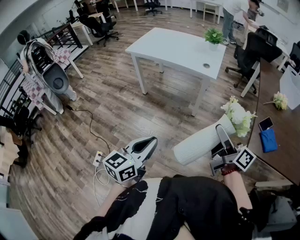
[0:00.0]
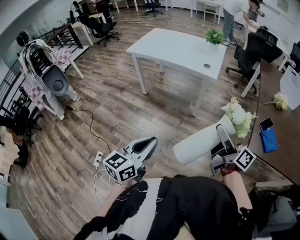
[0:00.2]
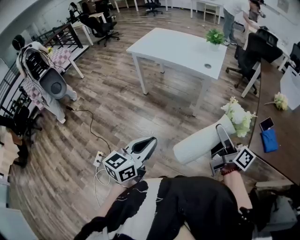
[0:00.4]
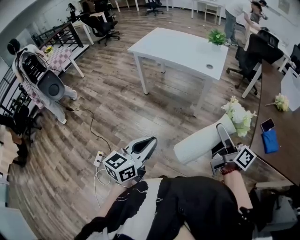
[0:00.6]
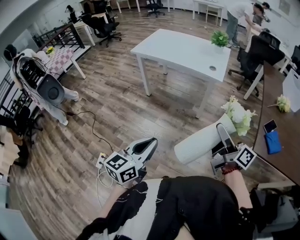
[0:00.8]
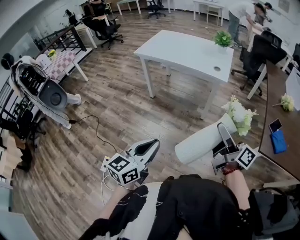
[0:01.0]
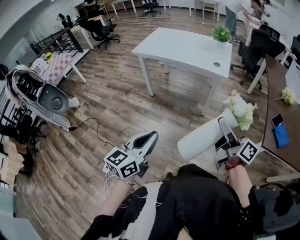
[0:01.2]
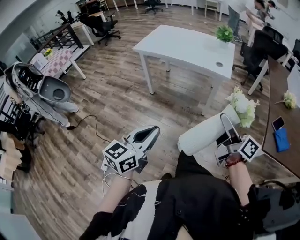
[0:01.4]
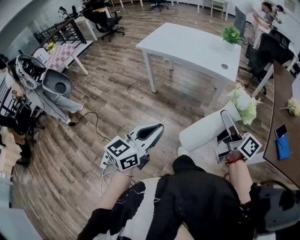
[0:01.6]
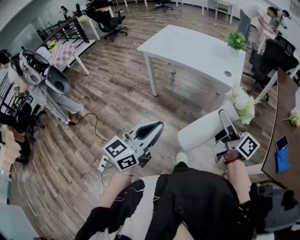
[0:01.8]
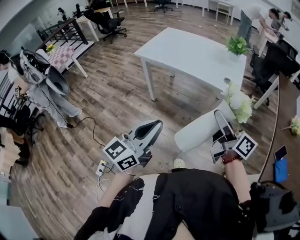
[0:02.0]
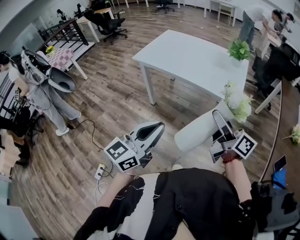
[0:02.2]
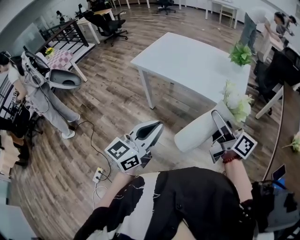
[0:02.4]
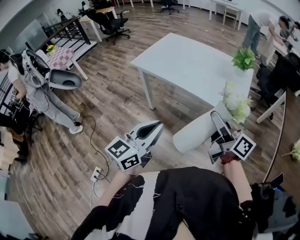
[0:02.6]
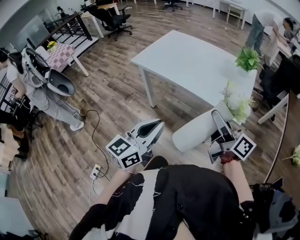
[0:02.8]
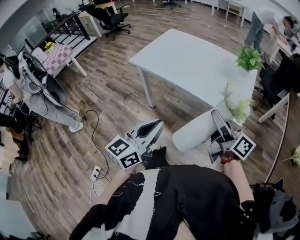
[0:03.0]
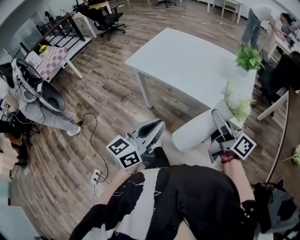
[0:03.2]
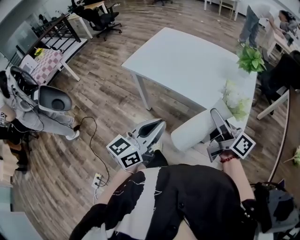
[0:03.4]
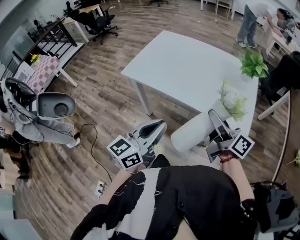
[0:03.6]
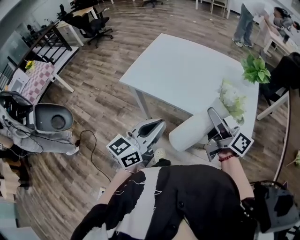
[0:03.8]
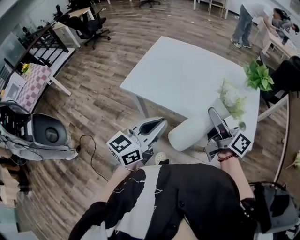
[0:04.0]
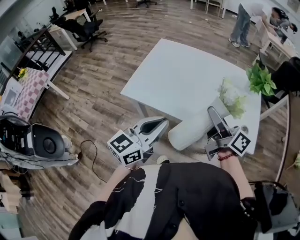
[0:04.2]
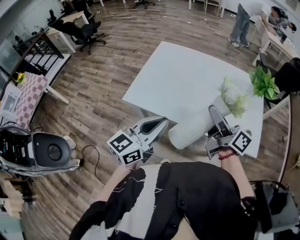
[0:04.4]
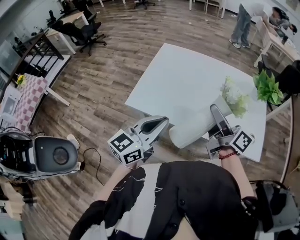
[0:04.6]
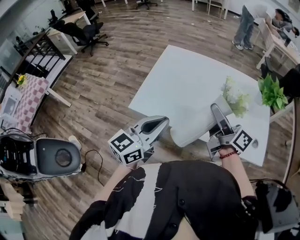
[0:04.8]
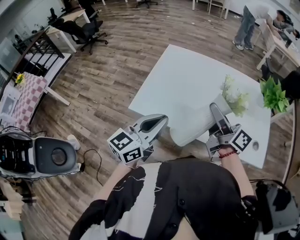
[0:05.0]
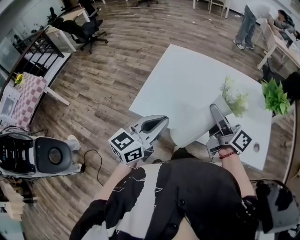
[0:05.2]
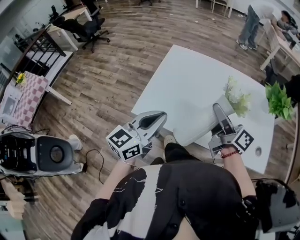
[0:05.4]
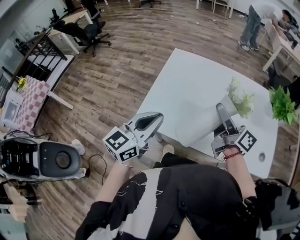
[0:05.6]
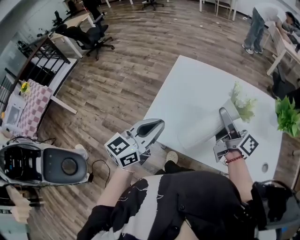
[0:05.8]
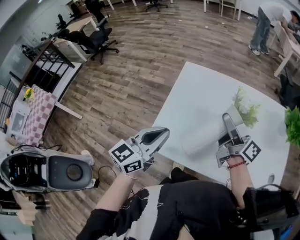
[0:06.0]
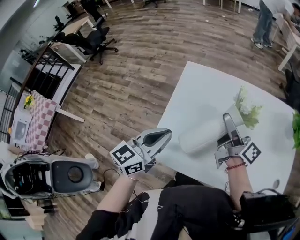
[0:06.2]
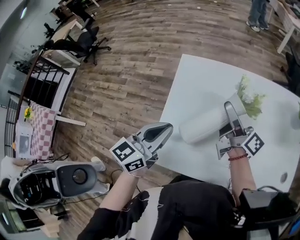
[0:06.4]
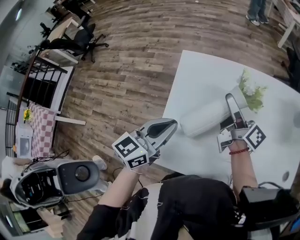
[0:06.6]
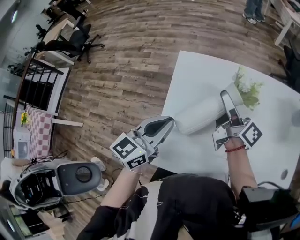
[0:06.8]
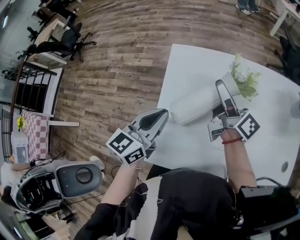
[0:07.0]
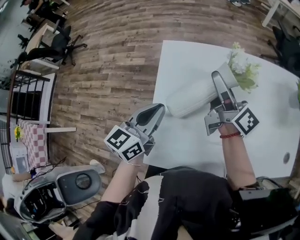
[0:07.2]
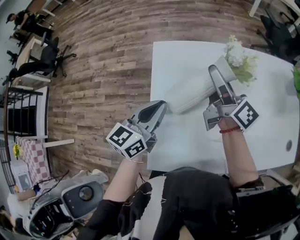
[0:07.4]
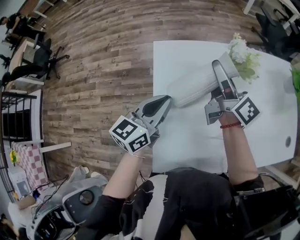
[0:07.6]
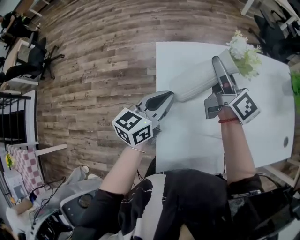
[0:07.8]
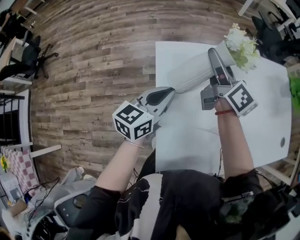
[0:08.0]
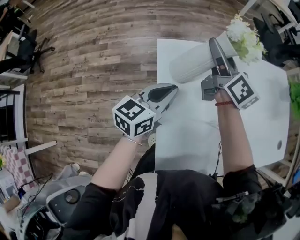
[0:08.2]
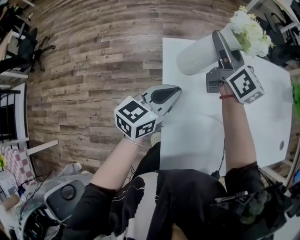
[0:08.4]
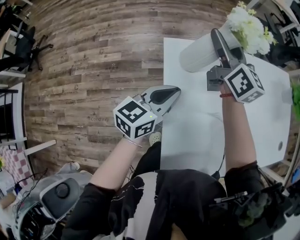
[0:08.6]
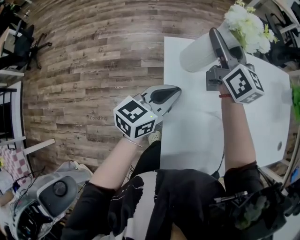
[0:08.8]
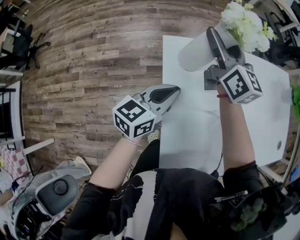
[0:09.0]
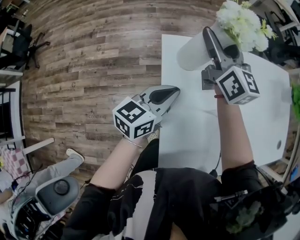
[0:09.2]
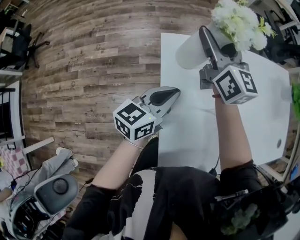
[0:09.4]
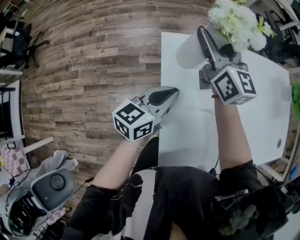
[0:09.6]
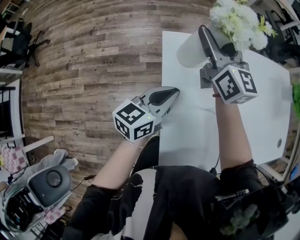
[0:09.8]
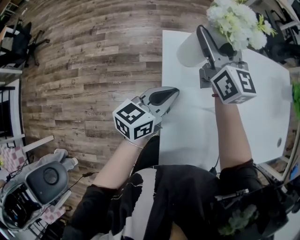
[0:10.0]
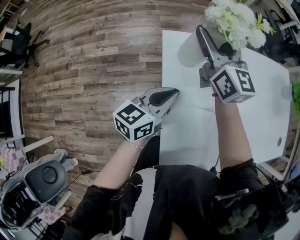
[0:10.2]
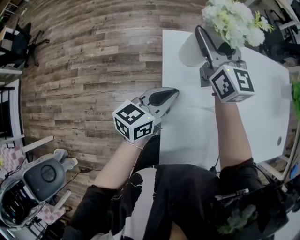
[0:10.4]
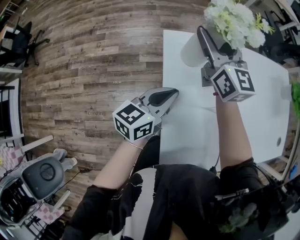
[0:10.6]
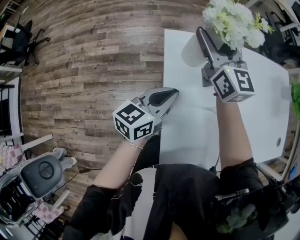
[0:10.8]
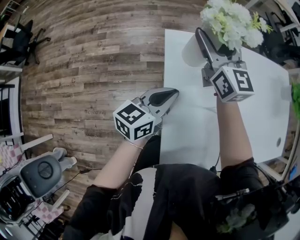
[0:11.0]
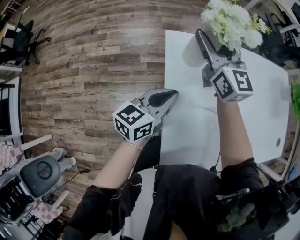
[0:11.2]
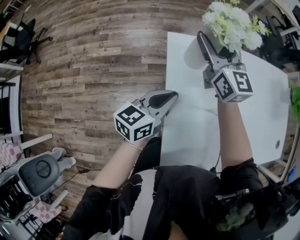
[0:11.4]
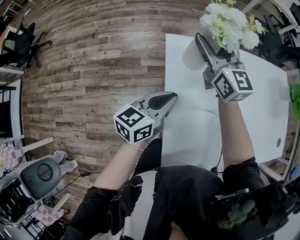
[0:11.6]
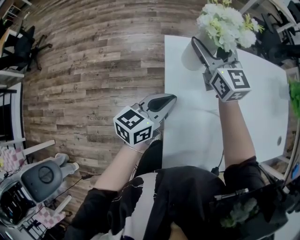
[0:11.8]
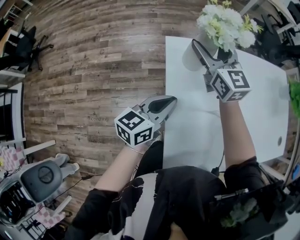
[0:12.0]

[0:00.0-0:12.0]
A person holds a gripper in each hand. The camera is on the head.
0:00.0 to 0:01.6: The two grippers go some 15 cm to the left and forward.
0:01.6 to 0:03.0: Both grippers move forward, approximately 35 cm.
0:03.0 to 0:04.4: The two grippers go about 35 cm forward and to the left.
0:04.4 to 0:06.0: Both grippers travel together forward and to the left, about 25 cm.
0:06.0 to 0:07.6: The left gripper travels forward and downward by roughly 25 cm; the right gripper travels forward by about 20 cm, and changes its angle by some 30 degrees.
0:07.6 to 0:09.0: The left gripper heads forward and to the left, covering about 10 cm, while the right gripper moves to the left and forward, some 15 cm, and changes its angle by approximately 40 degrees.
0:09.0 to 0:10.4: The grippers make only small movements.
0:10.4 to 0:12.0: The grippers make only small movements.

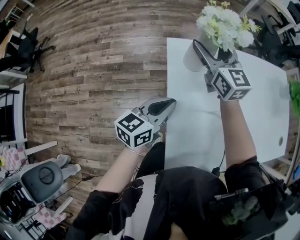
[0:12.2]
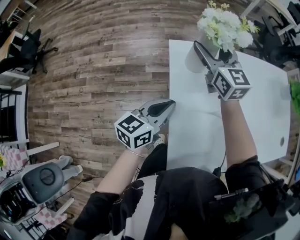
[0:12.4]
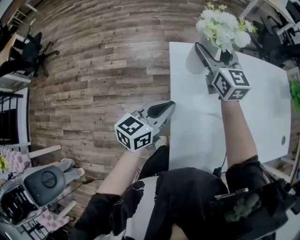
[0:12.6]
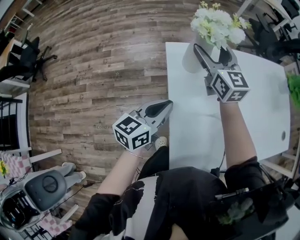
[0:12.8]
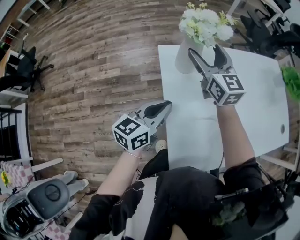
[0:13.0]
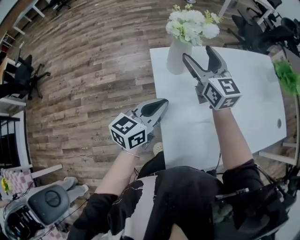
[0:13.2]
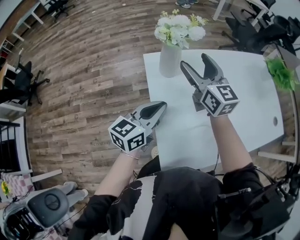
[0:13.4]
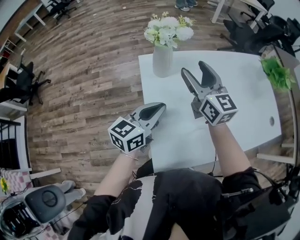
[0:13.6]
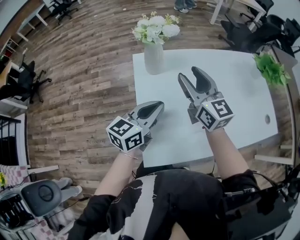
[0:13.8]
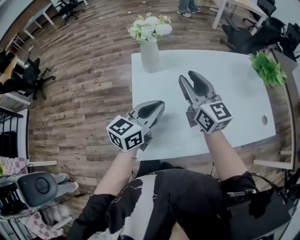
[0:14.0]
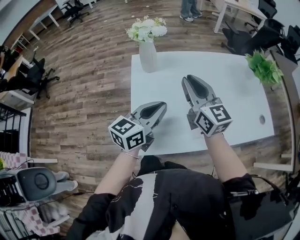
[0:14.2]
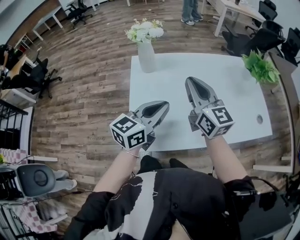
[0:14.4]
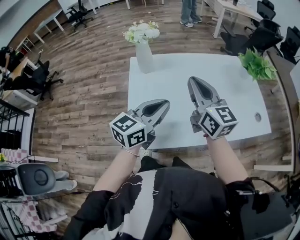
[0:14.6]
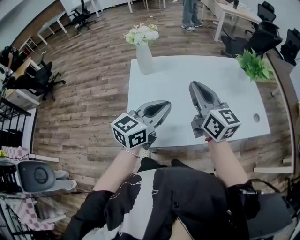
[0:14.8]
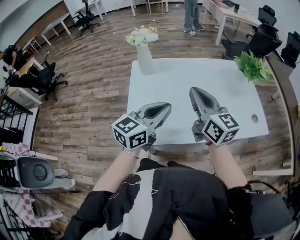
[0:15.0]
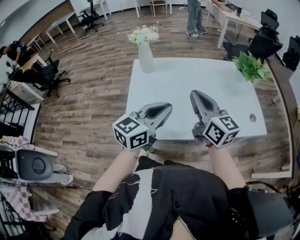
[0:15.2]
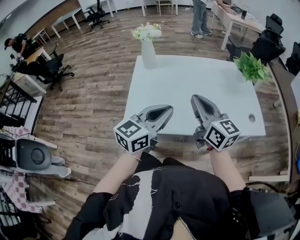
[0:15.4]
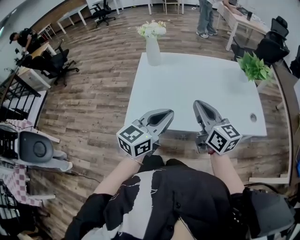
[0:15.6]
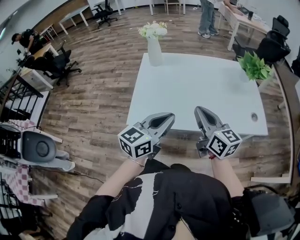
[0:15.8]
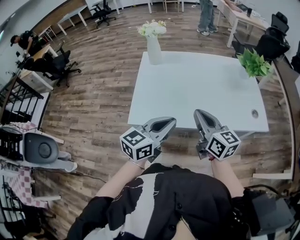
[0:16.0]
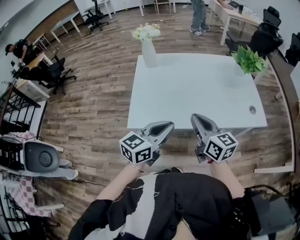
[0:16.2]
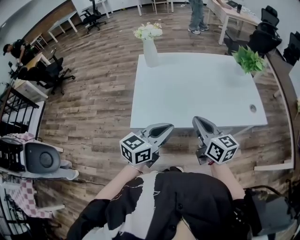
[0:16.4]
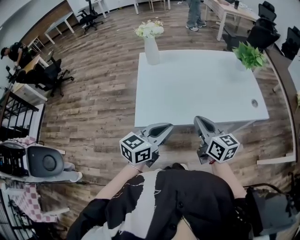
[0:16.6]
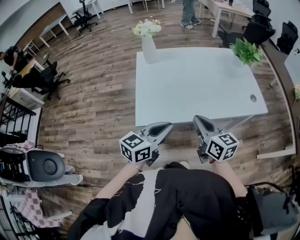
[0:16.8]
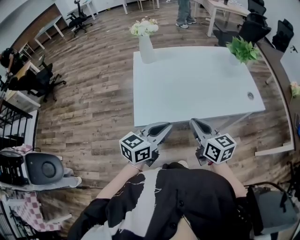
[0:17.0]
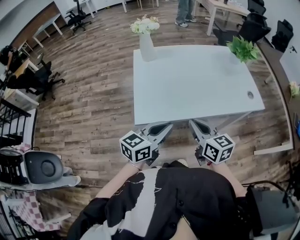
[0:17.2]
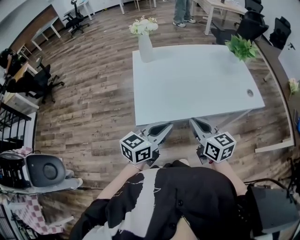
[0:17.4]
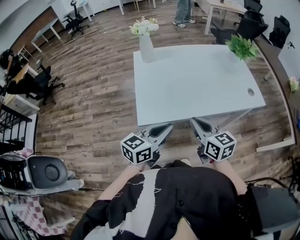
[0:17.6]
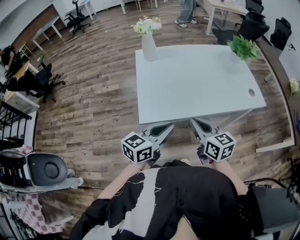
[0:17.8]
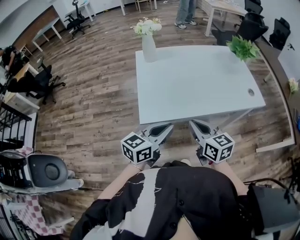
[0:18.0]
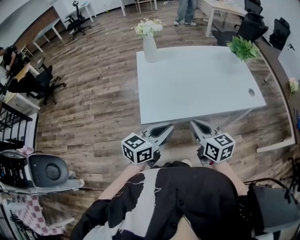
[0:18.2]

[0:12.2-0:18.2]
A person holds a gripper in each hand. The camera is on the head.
0:12.2 to 0:13.8: The left gripper moves to the right and upward, approximately 15 cm. Meanwhile the right gripper is displaced backward and to the right by approximately 20 cm.
0:13.8 to 0:15.2: The left gripper moves to the right, backward and upward, some 25 cm. The right gripper is displaced backward and to the right by some 25 cm, and closes its fingers.
0:15.2 to 0:16.6: The right gripper goes about 15 cm backward and downward; the left gripper shifts about 10 cm backward.
0:16.6 to 0:18.2: The left gripper shifts by roughly 5 cm. The right gripper moves backward and to the left, approximately 10 cm.

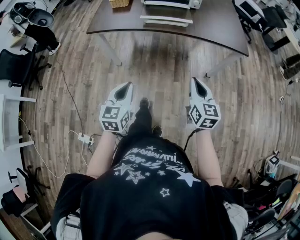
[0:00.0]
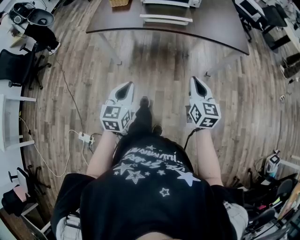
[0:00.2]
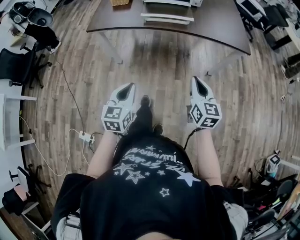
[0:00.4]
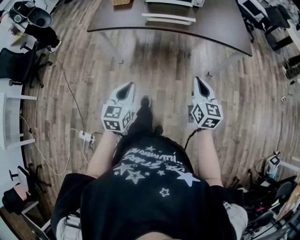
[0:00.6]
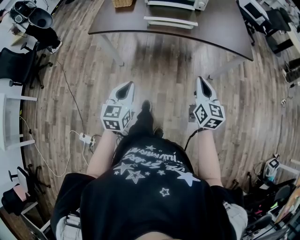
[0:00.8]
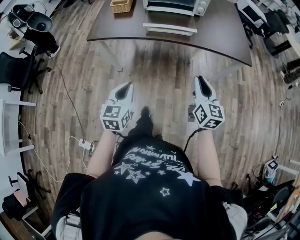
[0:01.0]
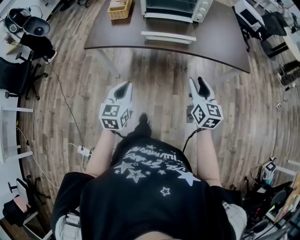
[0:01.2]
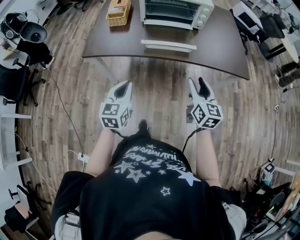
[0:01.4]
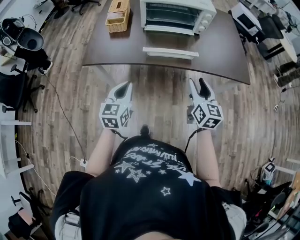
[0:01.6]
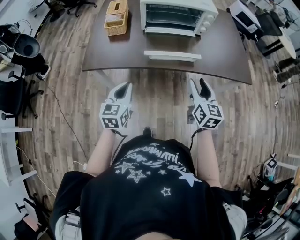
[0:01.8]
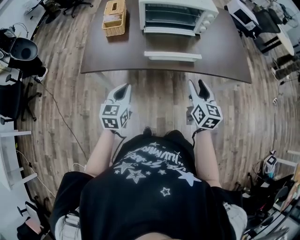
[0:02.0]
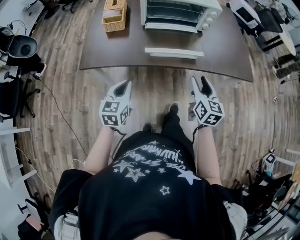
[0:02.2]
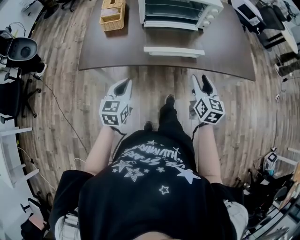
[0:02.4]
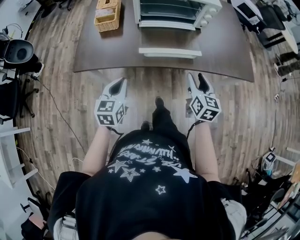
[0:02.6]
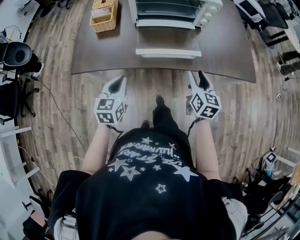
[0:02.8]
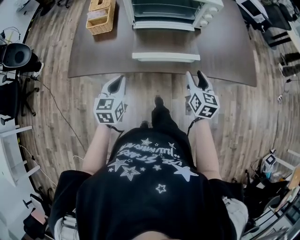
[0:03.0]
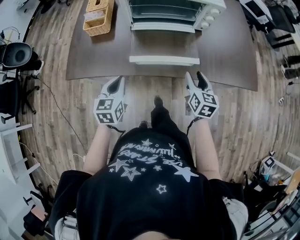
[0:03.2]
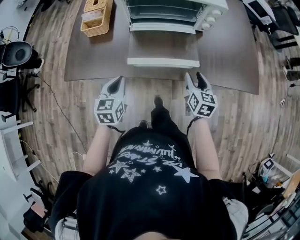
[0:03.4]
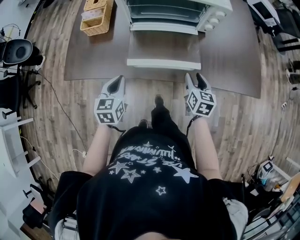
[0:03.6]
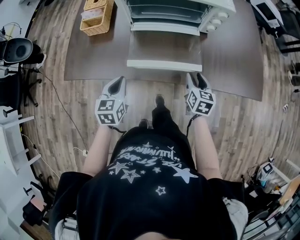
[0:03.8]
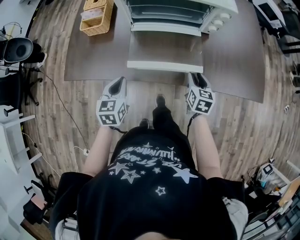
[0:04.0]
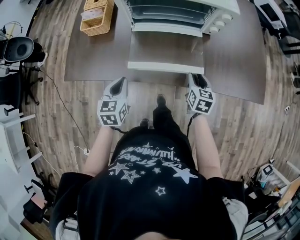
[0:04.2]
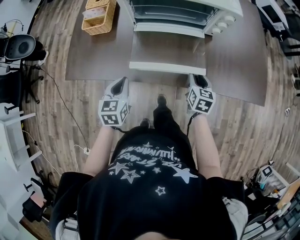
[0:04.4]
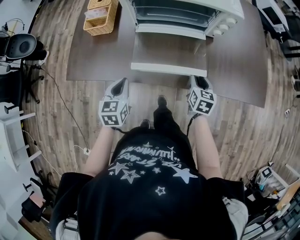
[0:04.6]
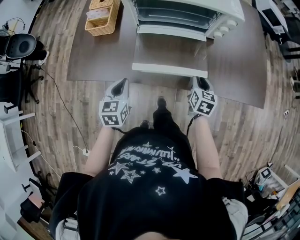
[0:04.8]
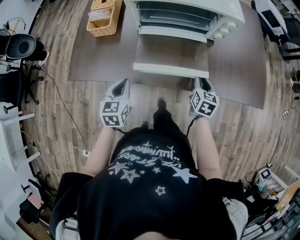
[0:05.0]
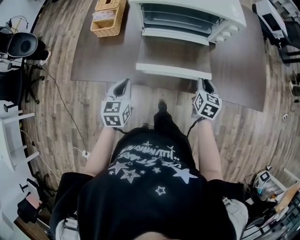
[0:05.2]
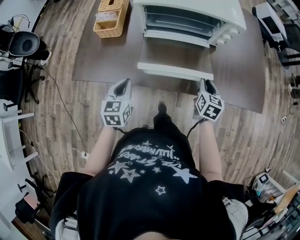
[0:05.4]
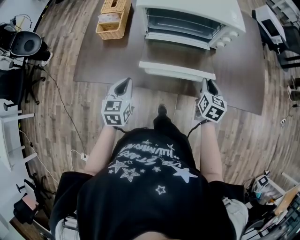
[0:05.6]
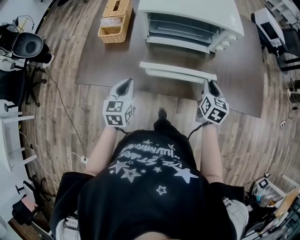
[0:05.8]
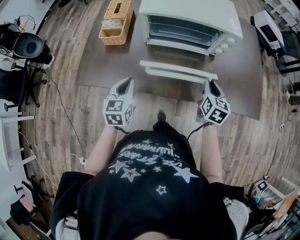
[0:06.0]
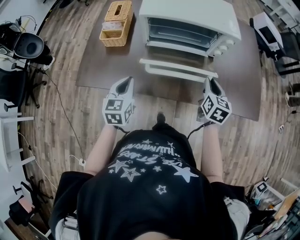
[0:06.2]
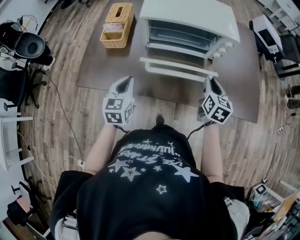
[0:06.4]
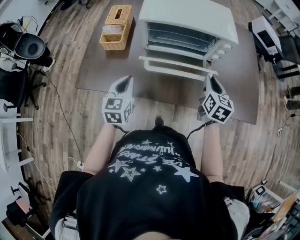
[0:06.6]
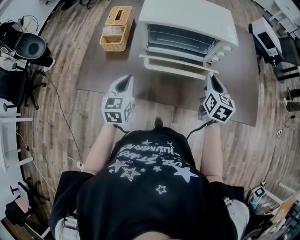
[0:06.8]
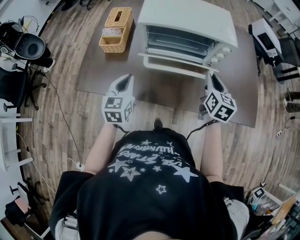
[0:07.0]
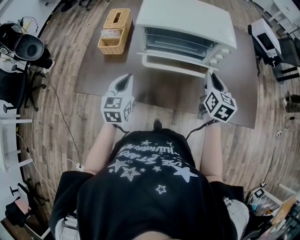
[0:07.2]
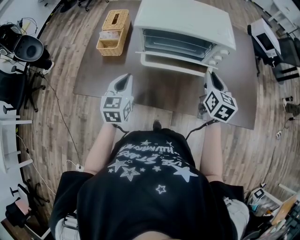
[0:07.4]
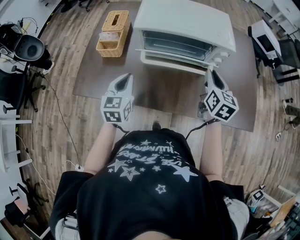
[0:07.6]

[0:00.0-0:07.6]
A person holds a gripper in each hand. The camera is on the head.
0:00.0 to 0:01.6: The two grippers go approximately 25 cm forward. The right gripper opens.
0:01.6 to 0:03.0: The grippers both shift forward and downward by about 15 cm.
0:03.0 to 0:04.6: The left gripper is displaced forward by roughly 5 cm. The right gripper heads downward and forward, covering some 15 cm.
0:04.6 to 0:06.0: The left gripper is displaced upward by roughly 5 cm; the right gripper heads upward, covering approximately 10 cm.
0:06.0 to 0:07.6: The left gripper goes roughly 5 cm forward. The right gripper travels upward and forward by approximately 10 cm.
